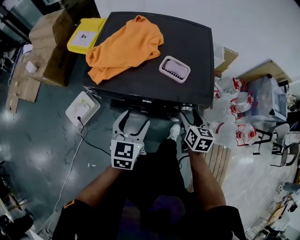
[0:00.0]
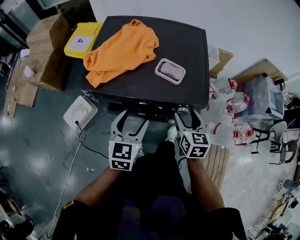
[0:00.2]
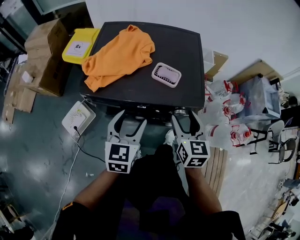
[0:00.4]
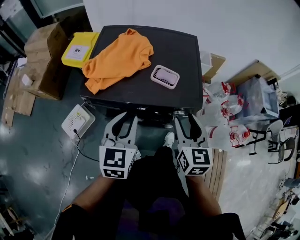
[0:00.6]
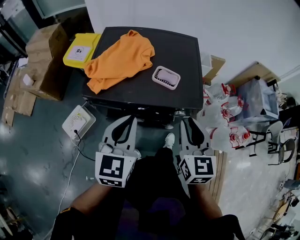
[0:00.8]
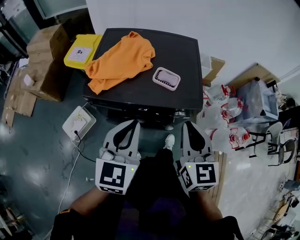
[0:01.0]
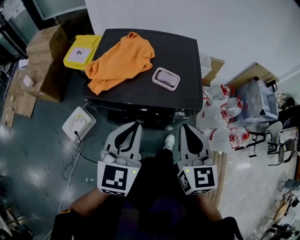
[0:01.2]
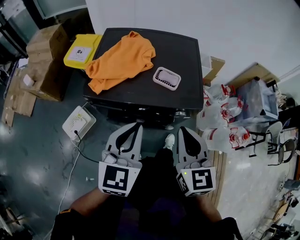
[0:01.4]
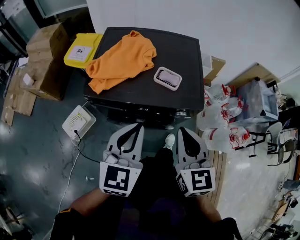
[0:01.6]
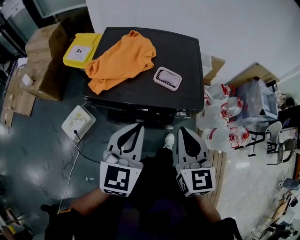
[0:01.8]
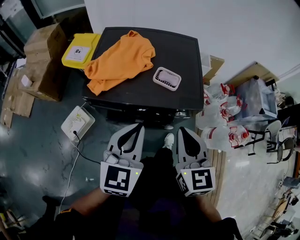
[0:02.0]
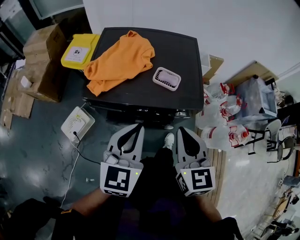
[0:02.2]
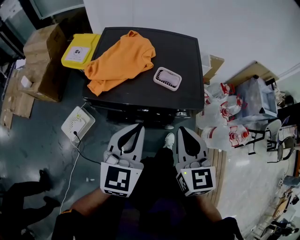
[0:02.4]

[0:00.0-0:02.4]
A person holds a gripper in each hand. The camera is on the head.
0:00.0 to 0:01.2: The two grippers go some 20 cm upward. The right gripper turns by about 30 degrees, and closes its fingers. Meanwhile the left gripper closes its fingers.
0:01.2 to 0:02.4: There are only small adjustments of the grippers.

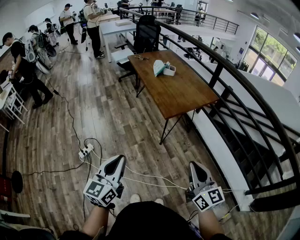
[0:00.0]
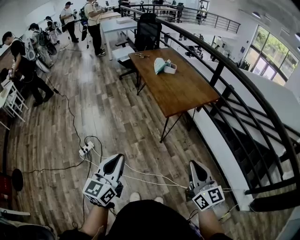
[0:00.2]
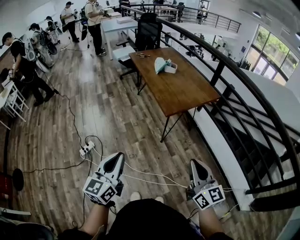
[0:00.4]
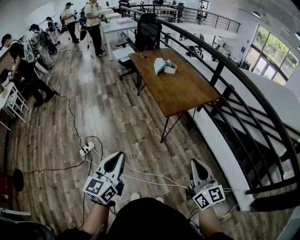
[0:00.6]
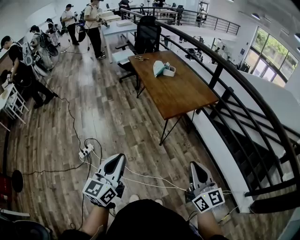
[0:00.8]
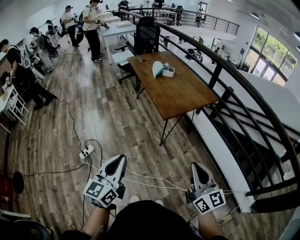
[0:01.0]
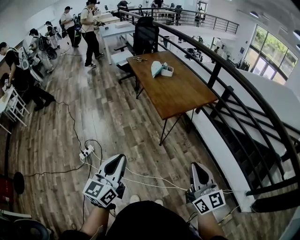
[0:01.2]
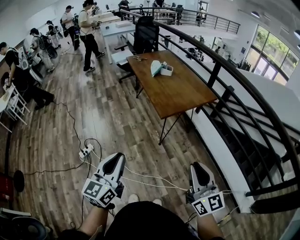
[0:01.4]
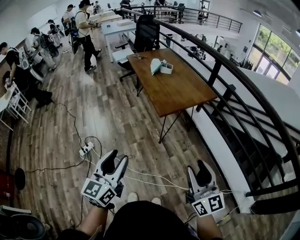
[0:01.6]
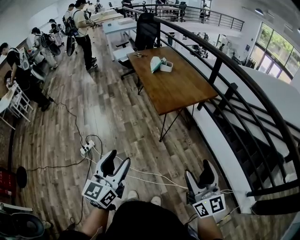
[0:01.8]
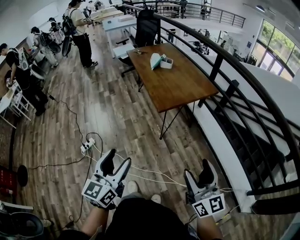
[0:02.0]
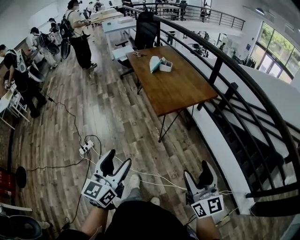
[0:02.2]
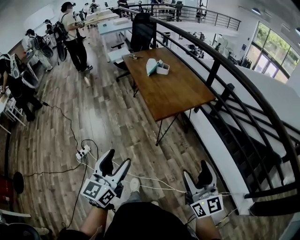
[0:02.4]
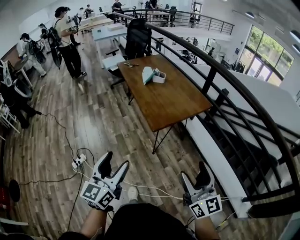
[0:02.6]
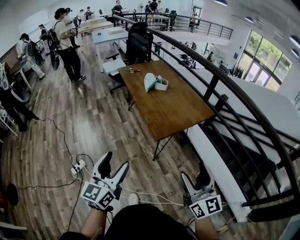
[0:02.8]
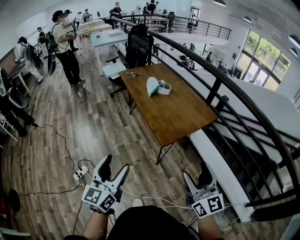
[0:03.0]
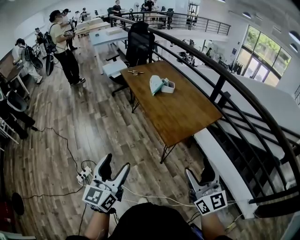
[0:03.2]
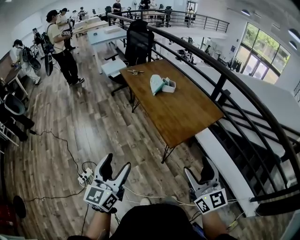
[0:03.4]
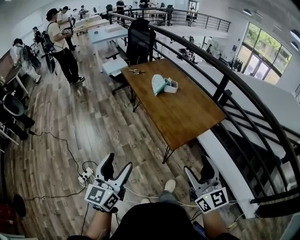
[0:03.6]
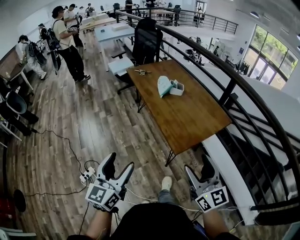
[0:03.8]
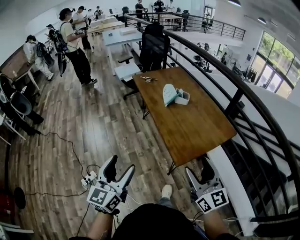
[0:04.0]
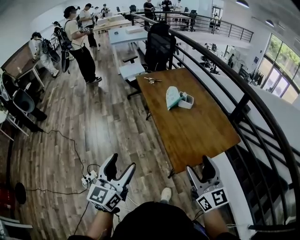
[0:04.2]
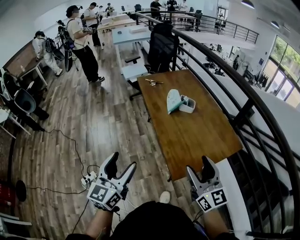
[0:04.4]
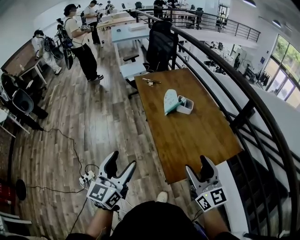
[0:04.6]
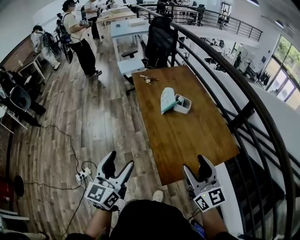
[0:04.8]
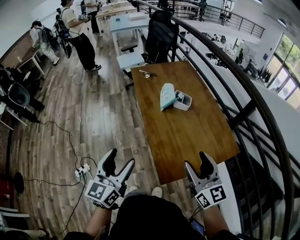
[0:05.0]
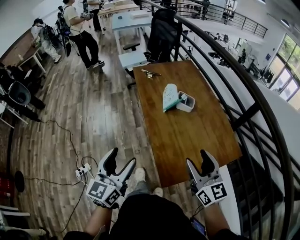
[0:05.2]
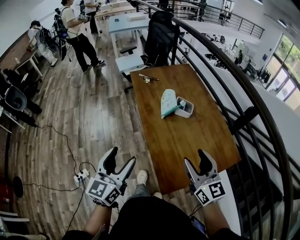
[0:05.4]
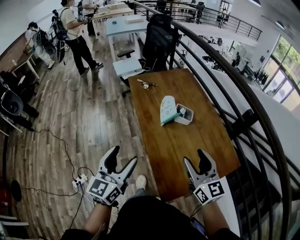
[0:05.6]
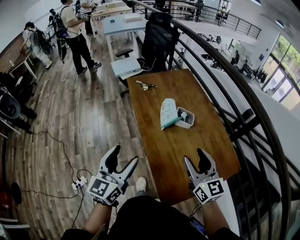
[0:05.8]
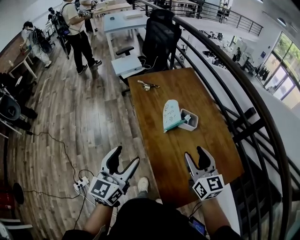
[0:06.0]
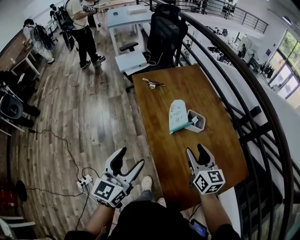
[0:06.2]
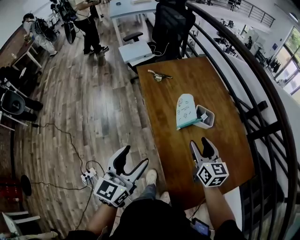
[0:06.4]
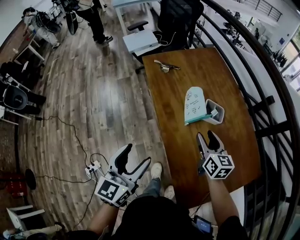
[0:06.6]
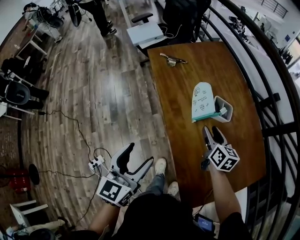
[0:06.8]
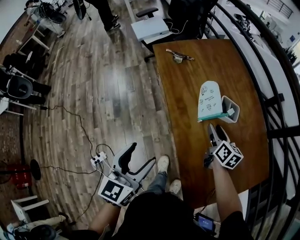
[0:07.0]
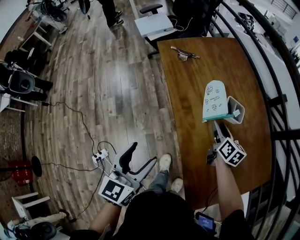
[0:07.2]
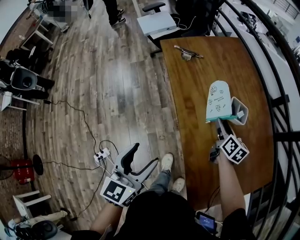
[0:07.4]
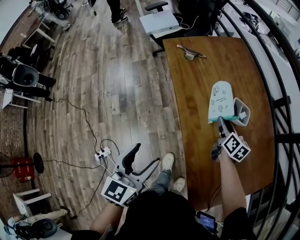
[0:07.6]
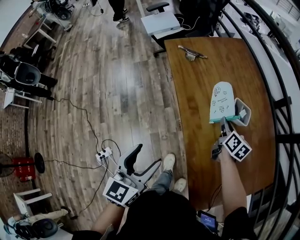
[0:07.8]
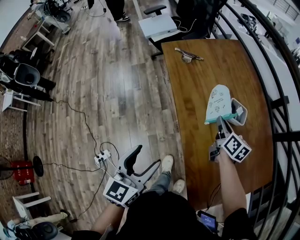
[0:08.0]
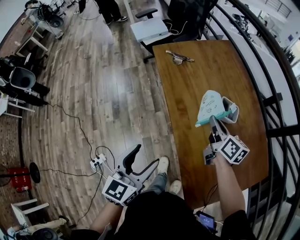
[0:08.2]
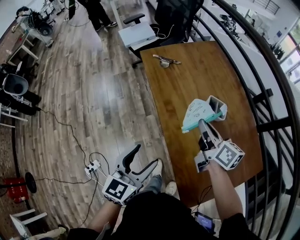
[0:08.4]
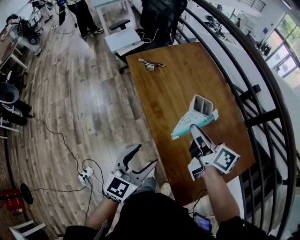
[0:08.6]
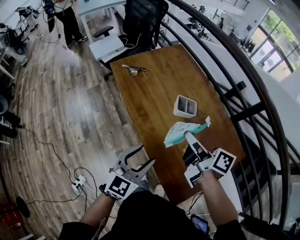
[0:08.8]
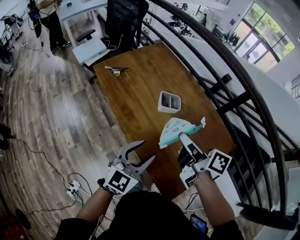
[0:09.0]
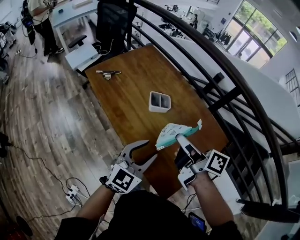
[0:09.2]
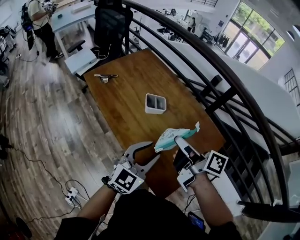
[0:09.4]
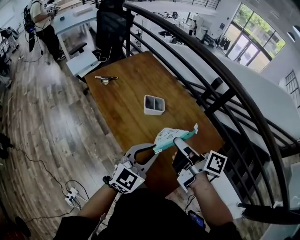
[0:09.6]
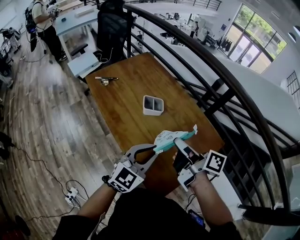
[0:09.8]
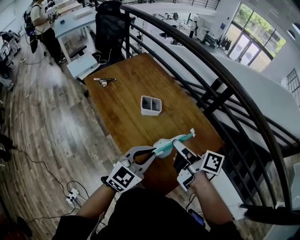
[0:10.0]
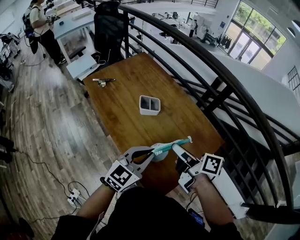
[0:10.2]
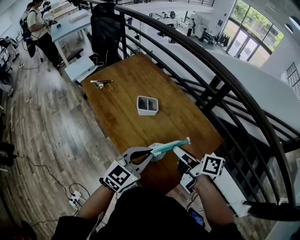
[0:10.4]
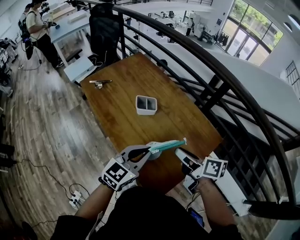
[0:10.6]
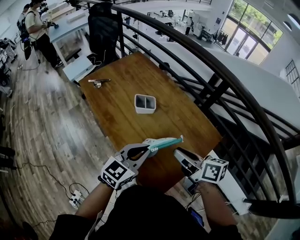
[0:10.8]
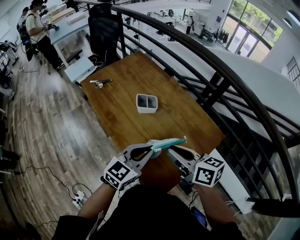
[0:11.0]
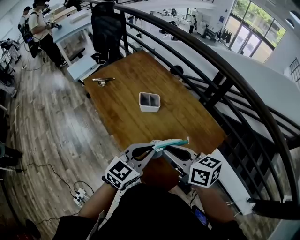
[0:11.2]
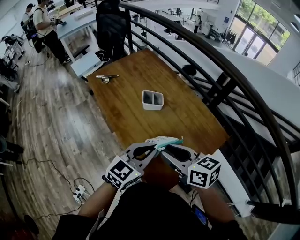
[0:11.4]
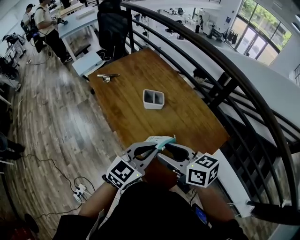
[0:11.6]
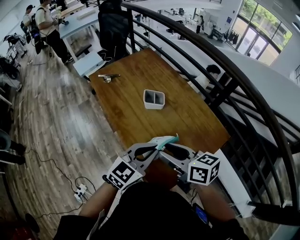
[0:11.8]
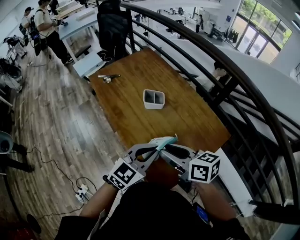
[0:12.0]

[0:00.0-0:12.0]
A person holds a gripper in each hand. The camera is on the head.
0:00.0 to 0:01.6: The two grippers go about 5 cm to the right. The left gripper opens its fingers. Meanwhile the right gripper opens up.
0:01.6 to 0:03.0: The grippers both shift forward by roughly 20 cm. The left gripper opens up. Meanwhile the right gripper opens.
0:03.0 to 0:04.4: Both grippers travel together forward, approximately 25 cm.
0:04.4 to 0:06.0: The grippers both shift forward by some 25 cm.
0:06.0 to 0:07.6: The left gripper shifts roughly 10 cm downward and to the left; the right gripper moves downward and forward, some 30 cm, and changes its angle by roughly 40 degrees.
0:07.6 to 0:09.0: The left gripper heads to the right, covering some 20 cm, and turns by approximately 40 degrees. Meanwhile the right gripper is displaced upward and backward by approximately 25 cm, swivels roughly 30 degrees, and closes.
0:09.0 to 0:10.4: The left gripper travels to the right by roughly 10 cm, and closes its fingers; the right gripper is displaced to the right and backward by approximately 15 cm.
0:10.4 to 0:12.0: The right gripper travels to the left by about 5 cm, and swivels about 30 degrees.

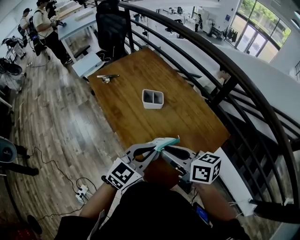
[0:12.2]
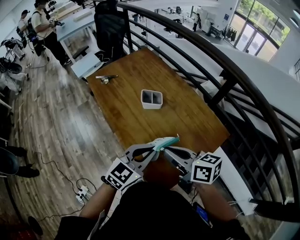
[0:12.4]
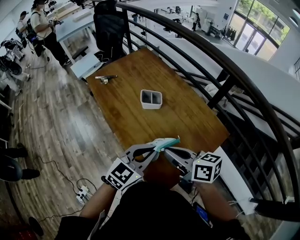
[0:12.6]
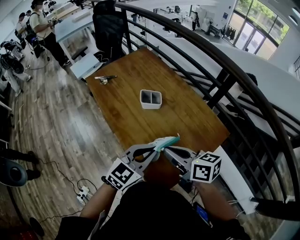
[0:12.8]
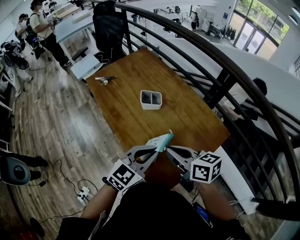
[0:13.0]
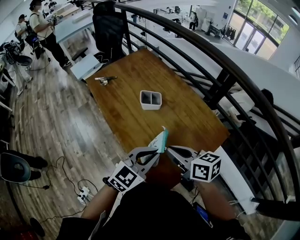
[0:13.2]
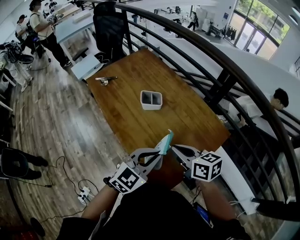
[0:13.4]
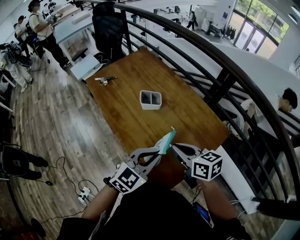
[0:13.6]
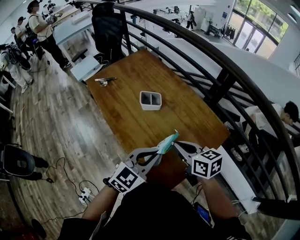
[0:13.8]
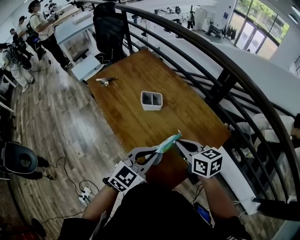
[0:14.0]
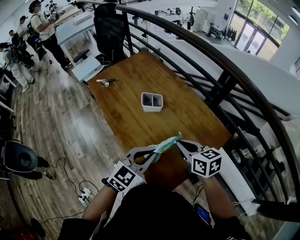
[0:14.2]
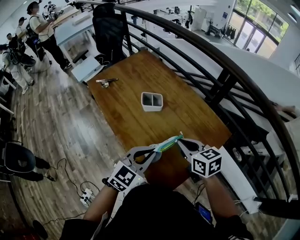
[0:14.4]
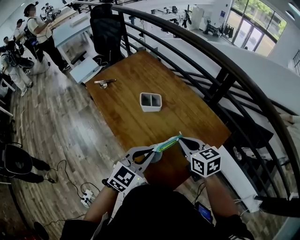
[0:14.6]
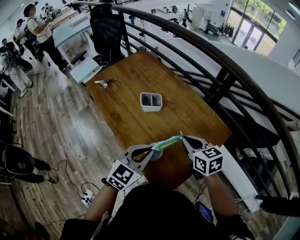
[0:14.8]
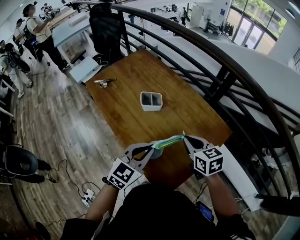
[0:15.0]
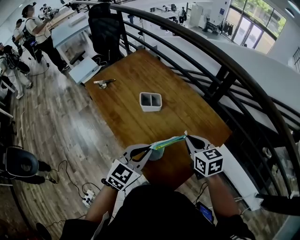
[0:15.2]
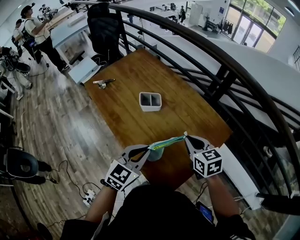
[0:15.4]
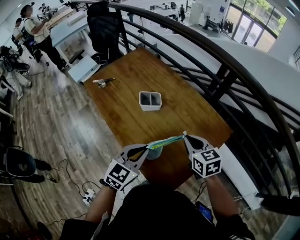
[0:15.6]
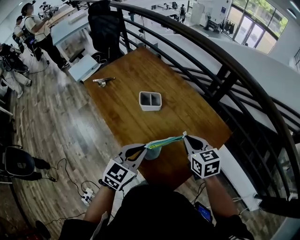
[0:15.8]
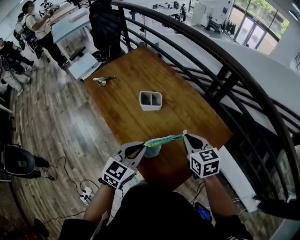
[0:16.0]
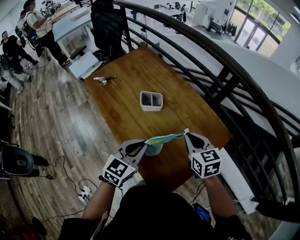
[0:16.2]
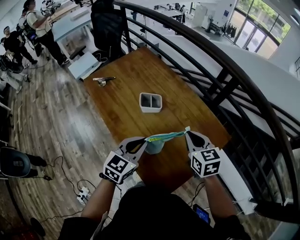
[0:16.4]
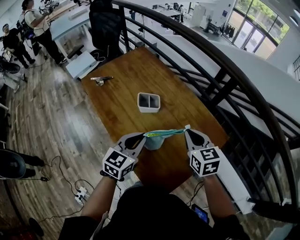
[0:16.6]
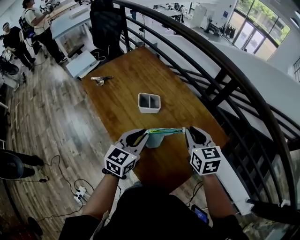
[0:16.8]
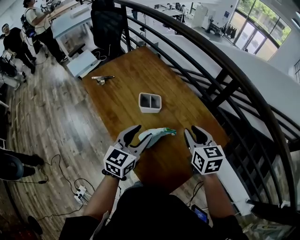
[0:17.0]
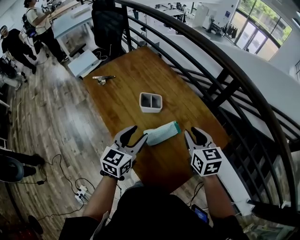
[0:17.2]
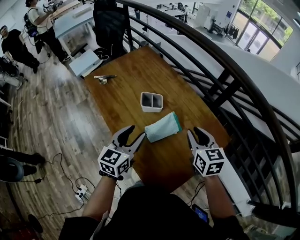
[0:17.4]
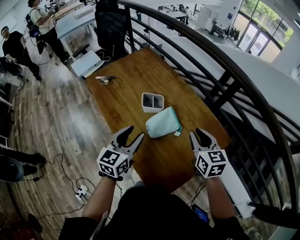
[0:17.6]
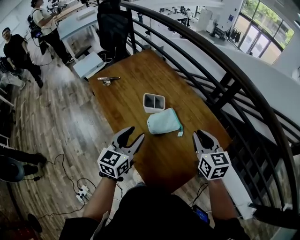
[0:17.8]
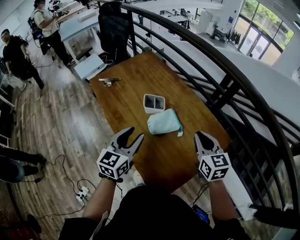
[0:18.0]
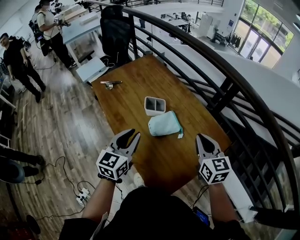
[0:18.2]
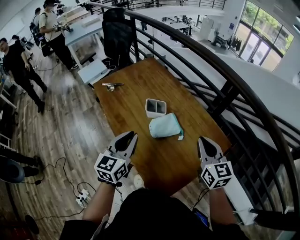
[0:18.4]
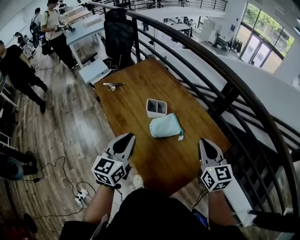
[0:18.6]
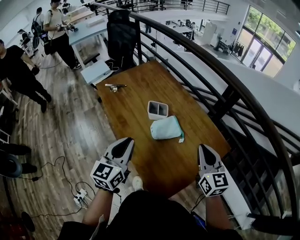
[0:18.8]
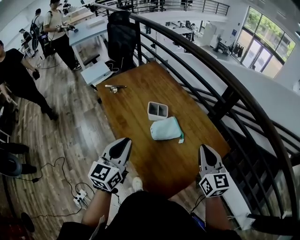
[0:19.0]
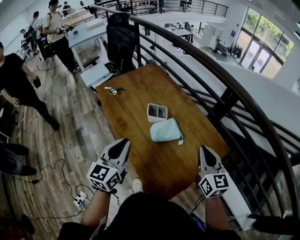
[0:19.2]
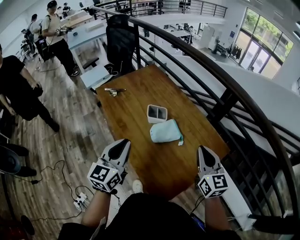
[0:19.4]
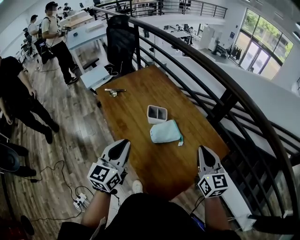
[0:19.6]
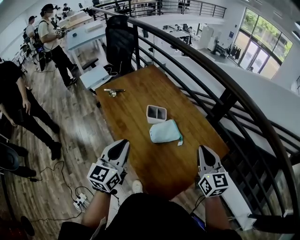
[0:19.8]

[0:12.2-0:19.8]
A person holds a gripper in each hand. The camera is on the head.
0:12.2 to 0:13.8: The right gripper heads to the right, covering roughly 5 cm.
0:13.8 to 0:15.2: The right gripper moves roughly 5 cm.
0:15.2 to 0:16.8: The left gripper travels forward by some 5 cm. The right gripper changes place by roughly 5 cm.
0:16.8 to 0:18.2: The left gripper is displaced to the left by approximately 5 cm.
0:18.2 to 0:19.8: The left gripper moves roughly 5 cm.

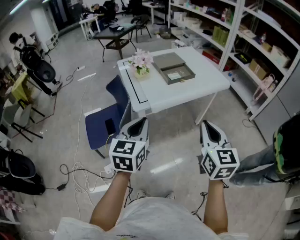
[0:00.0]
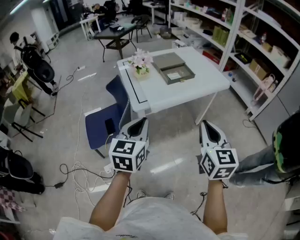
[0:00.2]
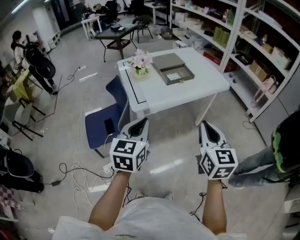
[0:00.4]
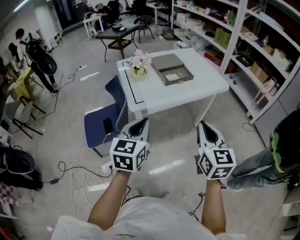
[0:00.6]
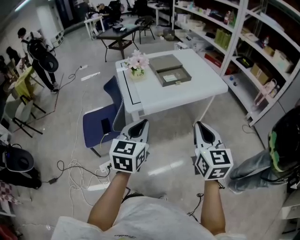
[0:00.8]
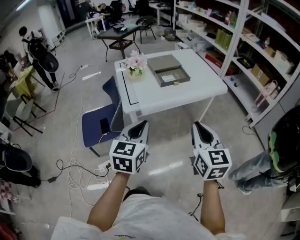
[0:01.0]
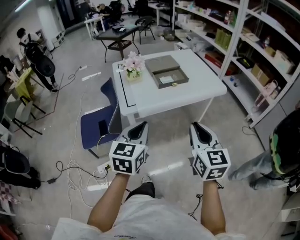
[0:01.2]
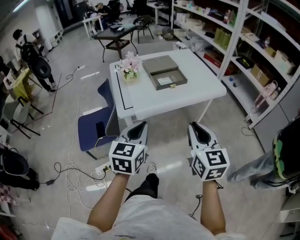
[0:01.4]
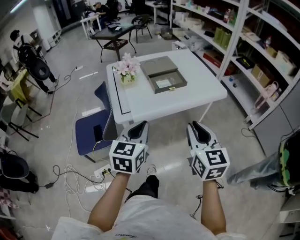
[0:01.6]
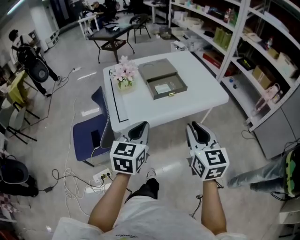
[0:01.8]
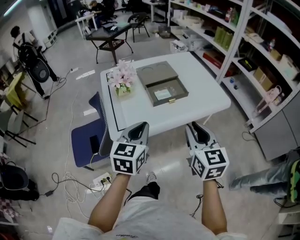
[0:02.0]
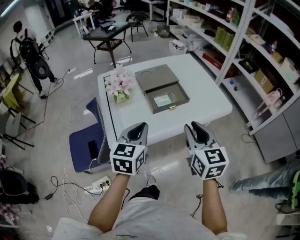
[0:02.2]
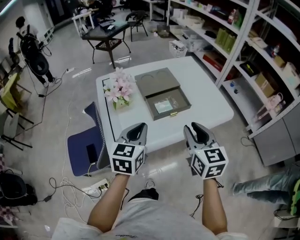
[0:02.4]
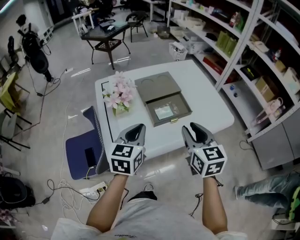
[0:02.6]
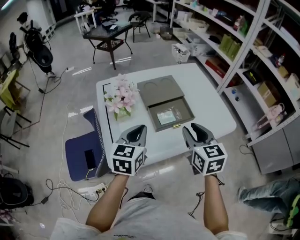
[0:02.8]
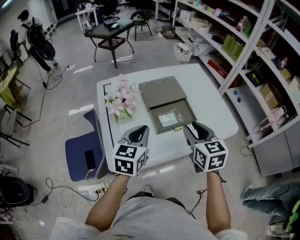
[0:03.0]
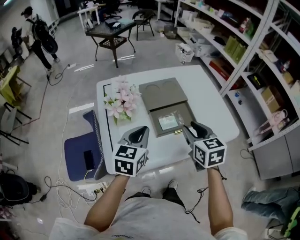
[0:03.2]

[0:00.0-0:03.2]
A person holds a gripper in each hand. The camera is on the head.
0:00.0 to 0:01.6: The grippers both shift forward and to the right by some 15 cm.
0:01.6 to 0:03.2: Both grippers travel together forward, some 30 cm.
